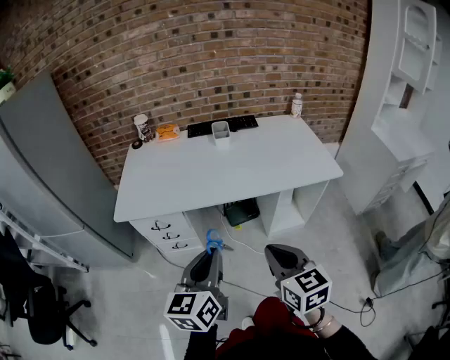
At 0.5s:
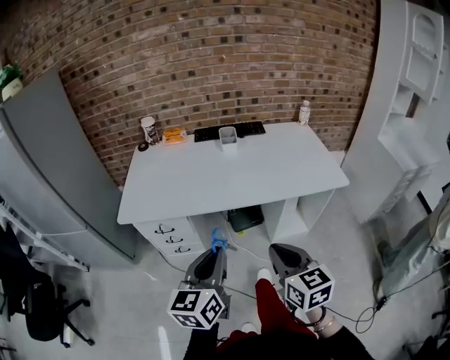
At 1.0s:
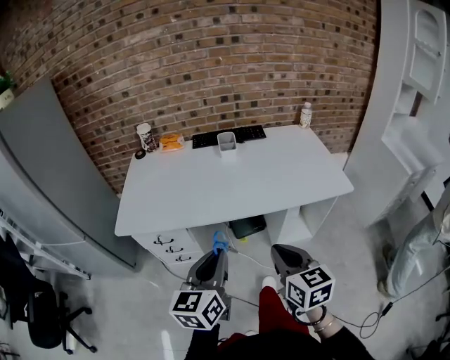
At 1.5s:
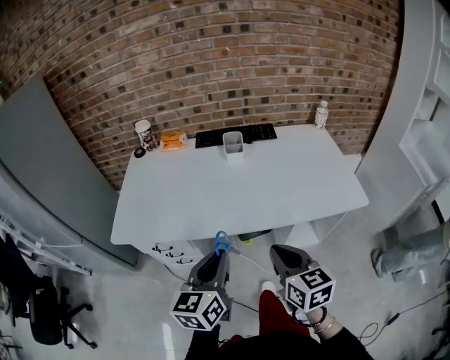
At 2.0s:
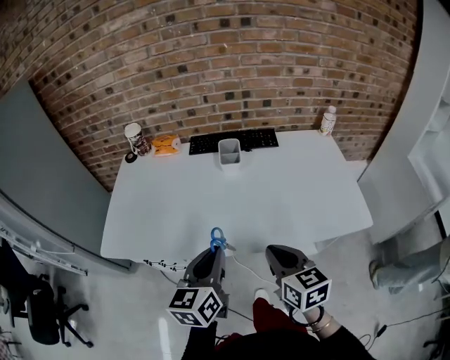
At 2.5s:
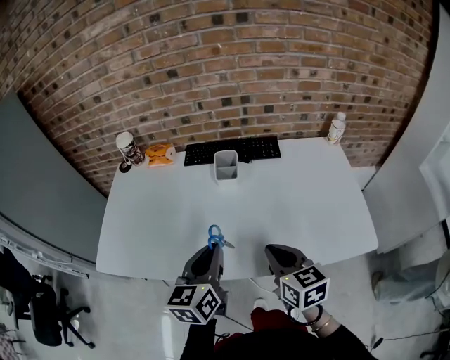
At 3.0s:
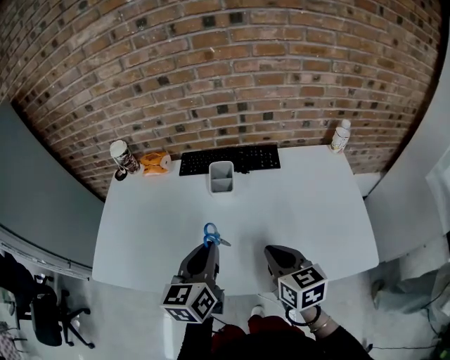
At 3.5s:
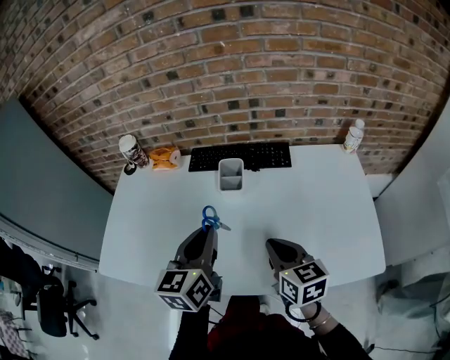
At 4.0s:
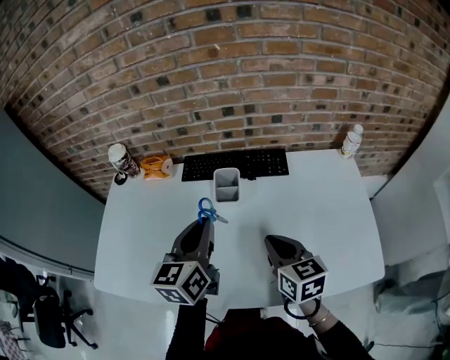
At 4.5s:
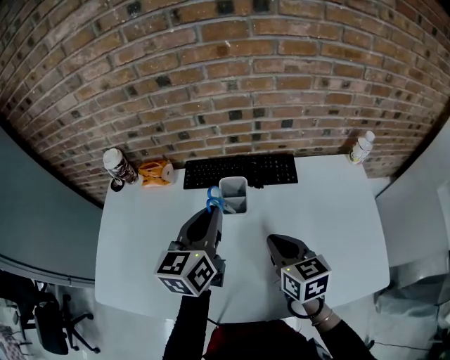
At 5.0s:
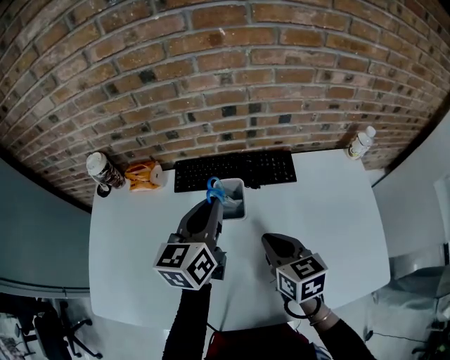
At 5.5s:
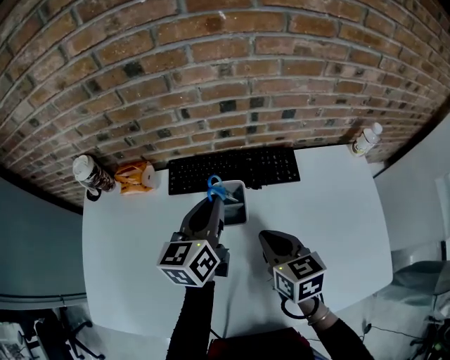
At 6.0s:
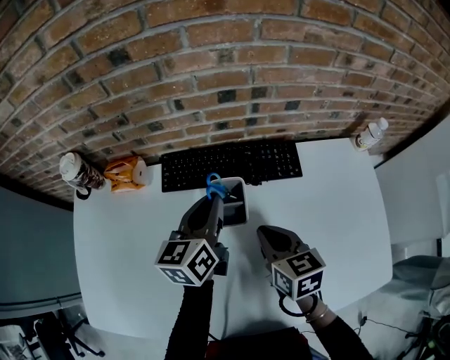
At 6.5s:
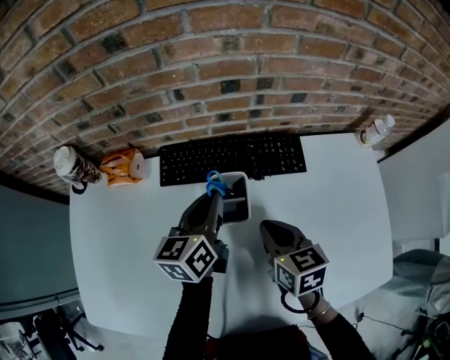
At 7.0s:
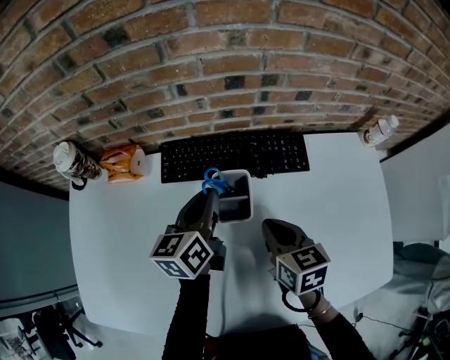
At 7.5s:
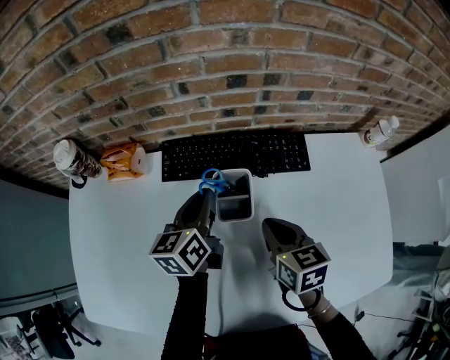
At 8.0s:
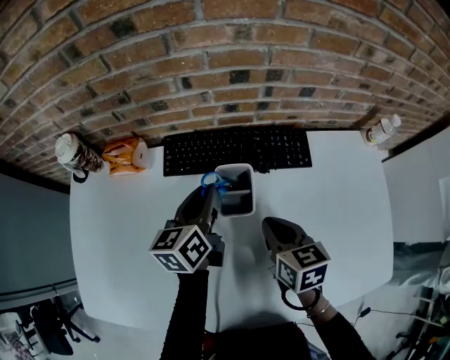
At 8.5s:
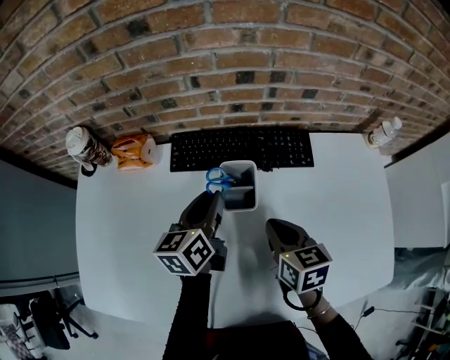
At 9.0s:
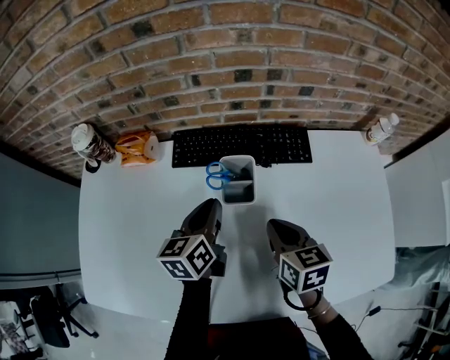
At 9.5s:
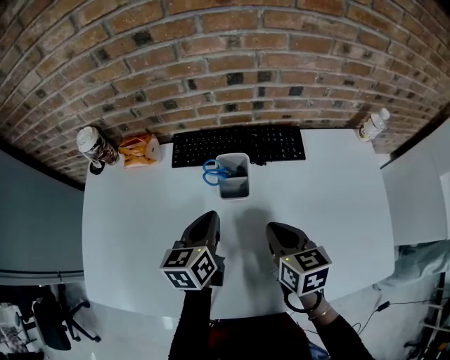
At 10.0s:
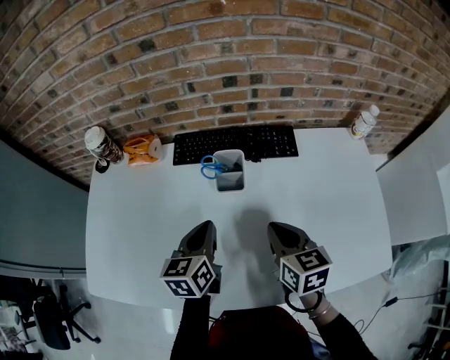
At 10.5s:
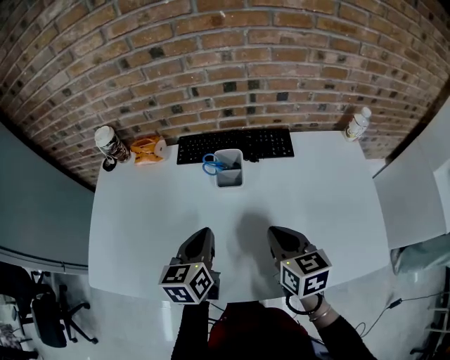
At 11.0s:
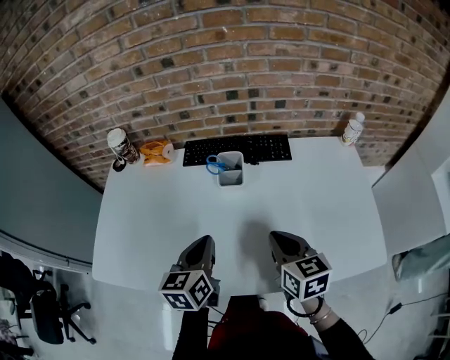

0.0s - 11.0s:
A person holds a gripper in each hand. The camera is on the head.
0.0s - 2.0s: Both grippers travel together forward, approximately 25 cm.
2.0s - 3.5s: Both grippers travel together forward, about 20 cm.
3.5s - 5.5s: Both grippers travel together forward, about 20 cm.
5.5s - 7.5s: The right gripper changes place by roughly 5 cm, while the left gripper travels downward by some 10 cm.
7.5s - 9.0s: The left gripper travels backward by roughly 5 cm.
9.0s - 11.0s: The left gripper goes roughly 20 cm backward; the right gripper moves backward and upward, about 15 cm.

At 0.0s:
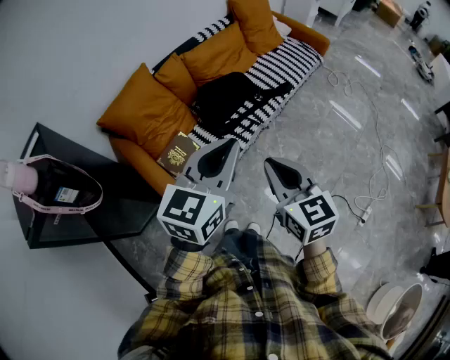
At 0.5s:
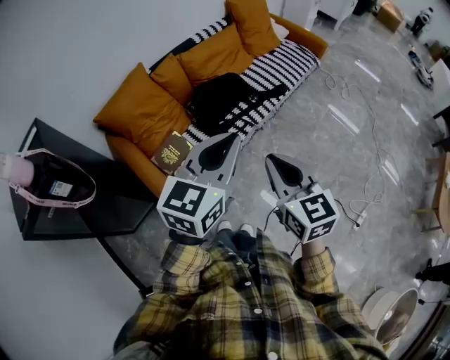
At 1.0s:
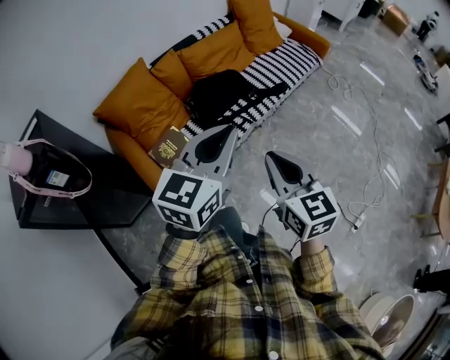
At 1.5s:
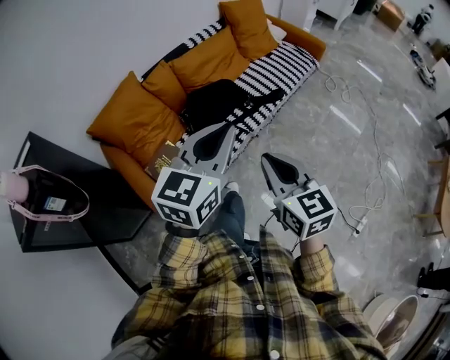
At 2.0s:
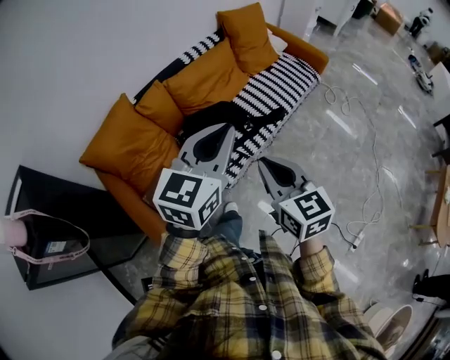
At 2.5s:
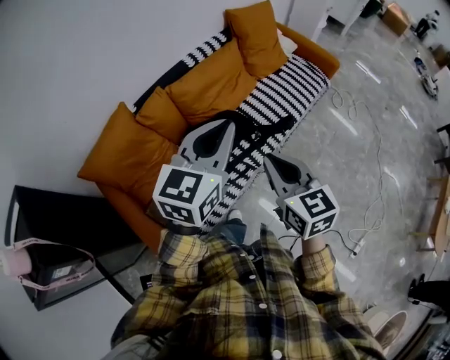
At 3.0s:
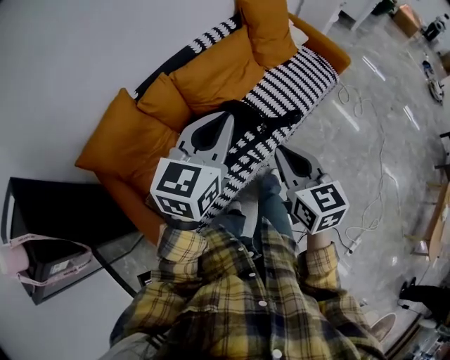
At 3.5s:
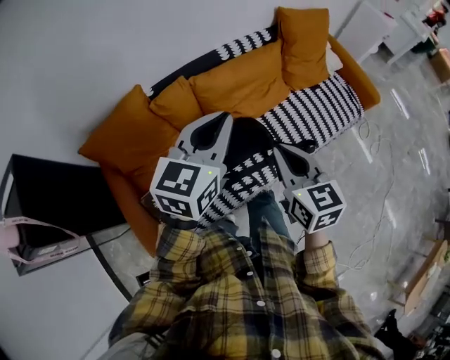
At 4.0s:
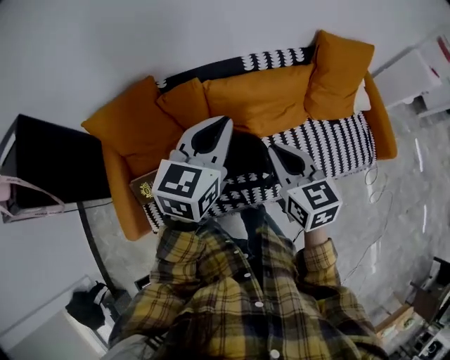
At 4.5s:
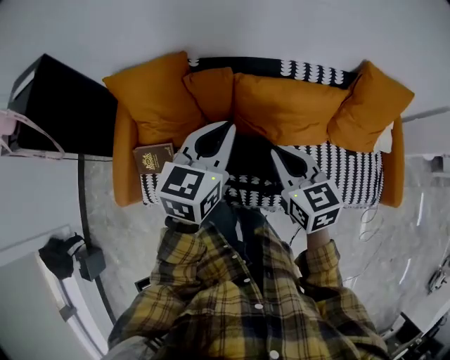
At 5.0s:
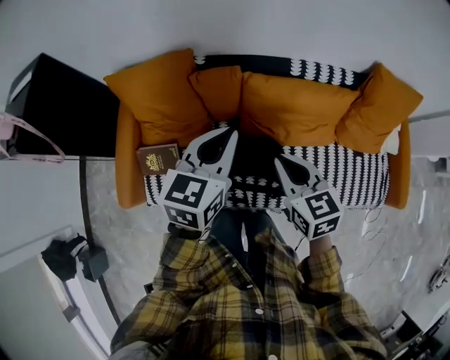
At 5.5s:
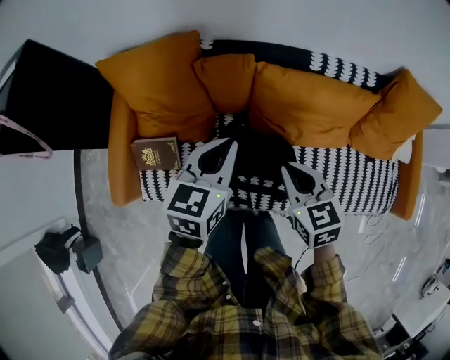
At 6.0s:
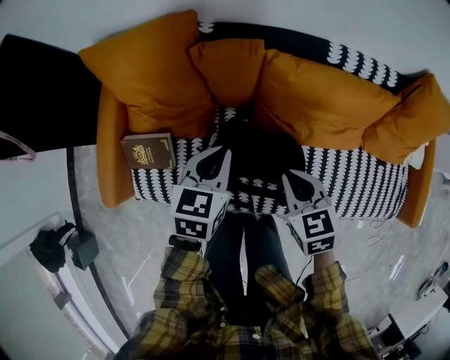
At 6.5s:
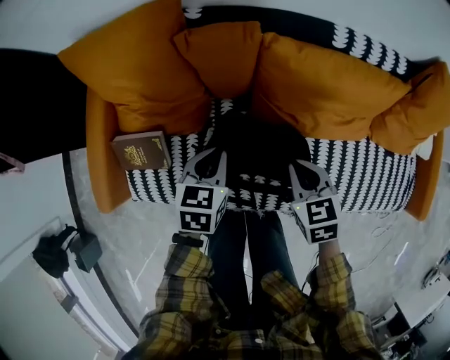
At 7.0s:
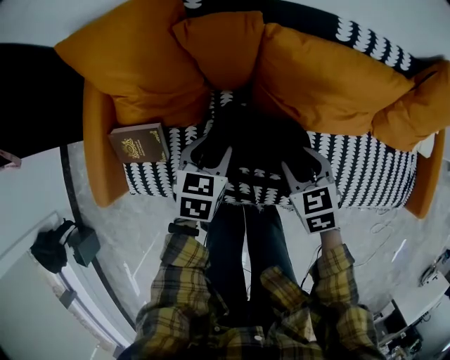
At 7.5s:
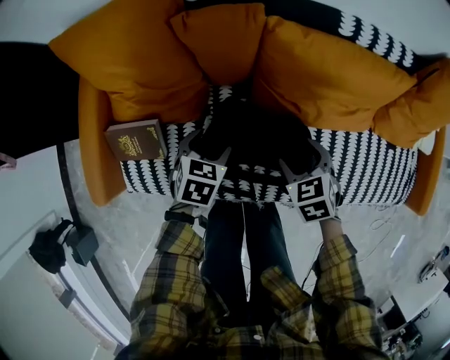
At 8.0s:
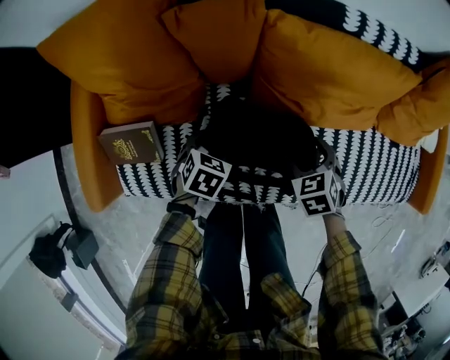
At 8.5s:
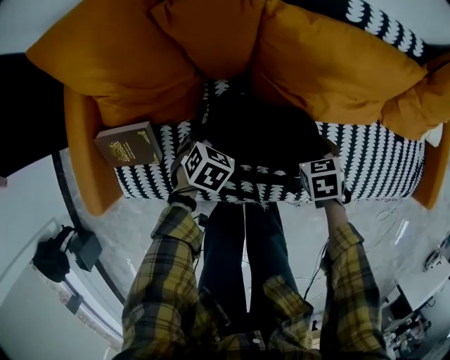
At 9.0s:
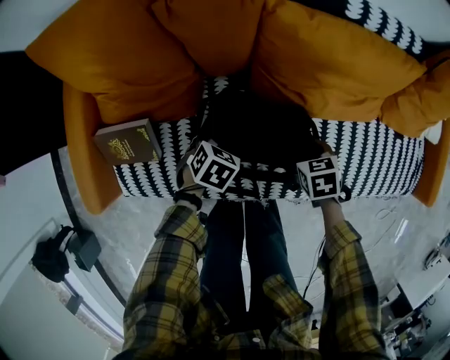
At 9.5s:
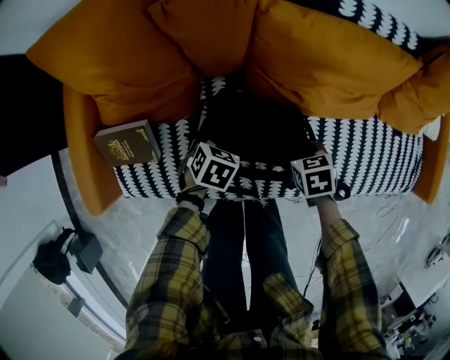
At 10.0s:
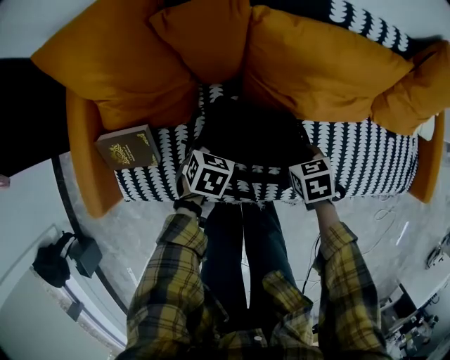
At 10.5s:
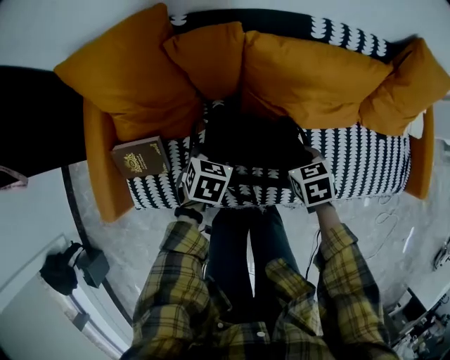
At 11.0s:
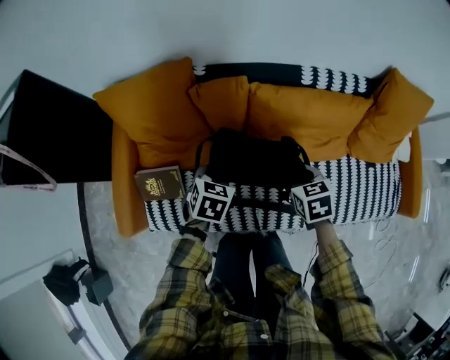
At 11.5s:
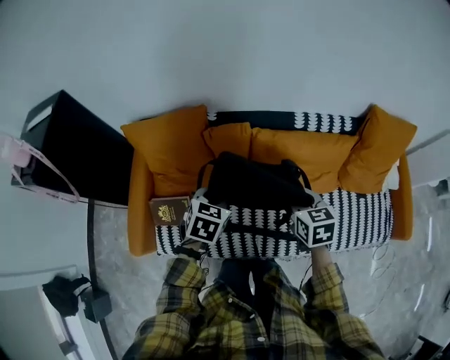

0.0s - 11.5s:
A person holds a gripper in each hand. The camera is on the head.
0.0s - 2.0s: Both grippers travel together forward, some 20 cm.
2.0s - 4.0s: The left gripper shifts by about 35 cm, and changes its angle by about 40 degrees, while the right gripper changes place by some 40 cm, and rotates about 30 degrees.
4.0s - 6.0s: The right gripper is displaced downward by roughly 25 cm, and turns by roughly 30 degrees; the left gripper travels downward and to the left by roughly 30 cm, and turns by about 30 degrees.
6.0s - 7.5s: The two grippers go about 15 cm downward. The right gripper opens. The left gripper changes its angle by approximately 20 degrees, and opens its fingers.
7.5s - 9.5s: The two grippers go approximately 10 cm downward. The right gripper changes its angle by about 20 degrees, and closes up. The left gripper closes up.
9.5s - 11.5s: The grippers both shift upward by roughly 35 cm. The right gripper turns by some 30 degrees. The left gripper turns by roughly 20 degrees.

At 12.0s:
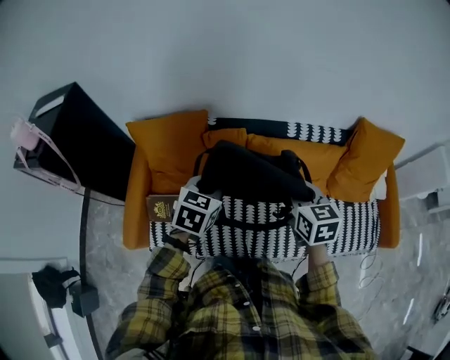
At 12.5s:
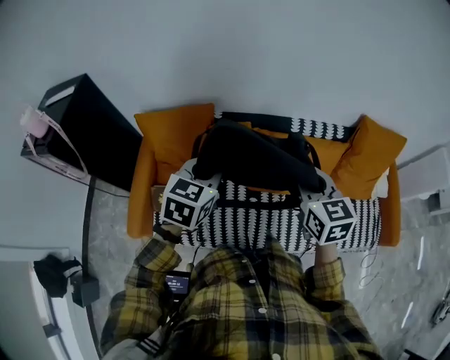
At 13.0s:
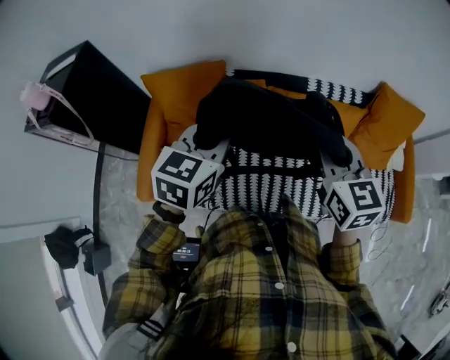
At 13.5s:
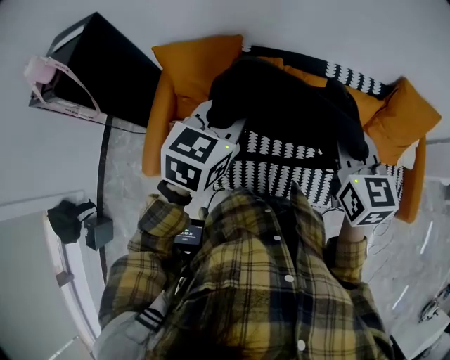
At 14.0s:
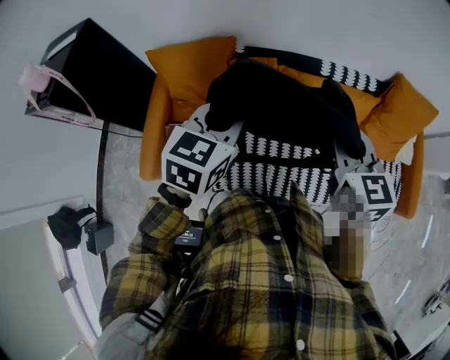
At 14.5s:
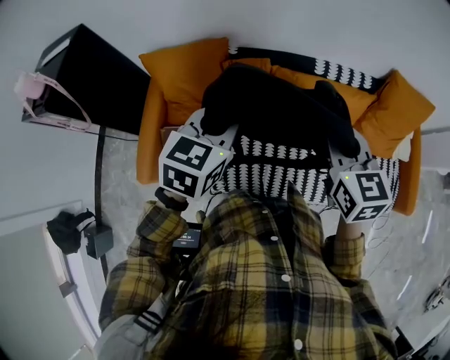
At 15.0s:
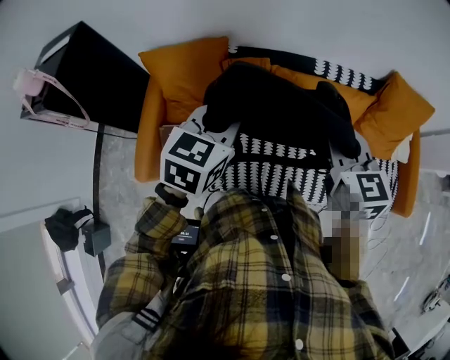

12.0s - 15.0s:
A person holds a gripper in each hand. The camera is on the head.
12.0s - 13.5s: The two grippers go about 10 cm upward.
13.5s - 15.0s: There are only small adjustments of the grippers.

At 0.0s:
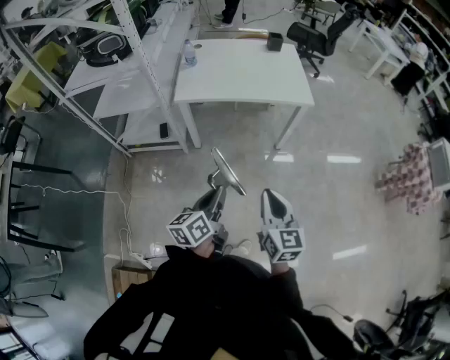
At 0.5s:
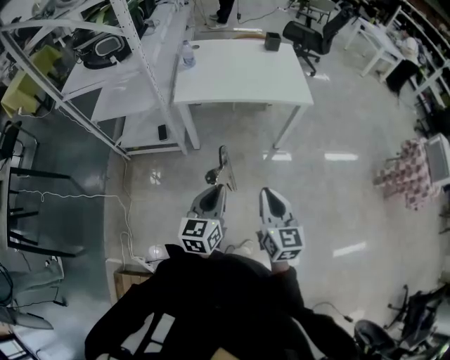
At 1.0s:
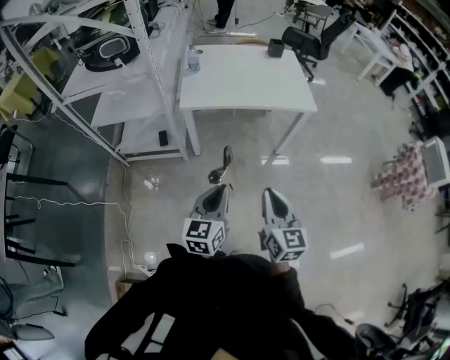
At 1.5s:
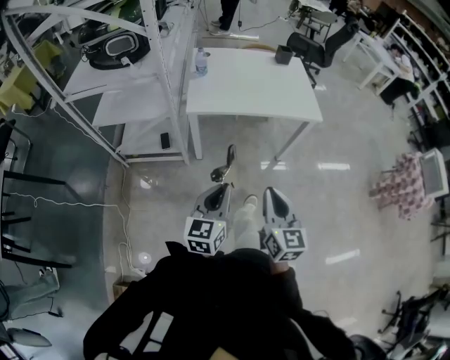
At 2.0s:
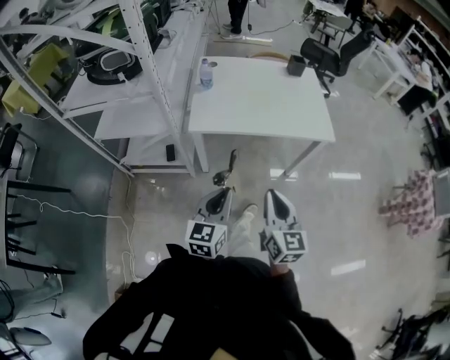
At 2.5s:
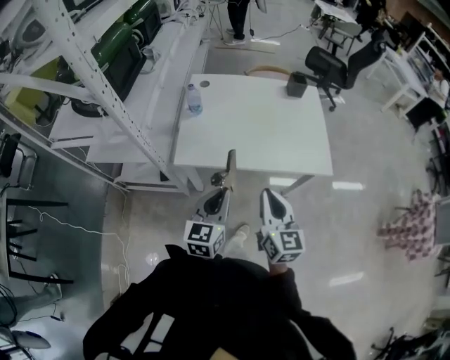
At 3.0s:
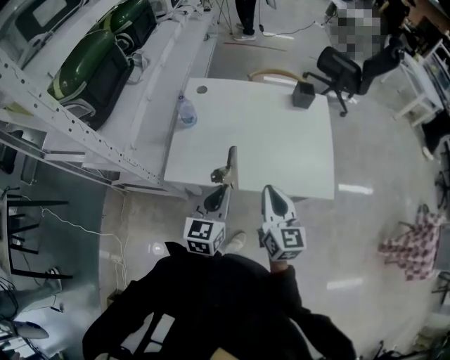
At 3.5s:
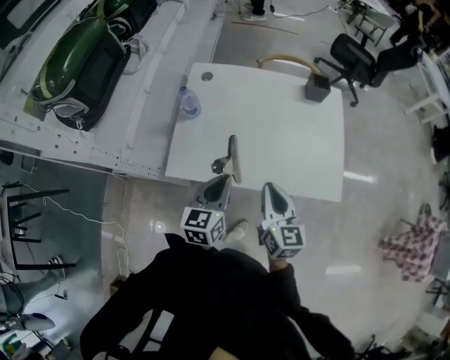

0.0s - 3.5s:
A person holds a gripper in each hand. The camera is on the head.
0.0s - 2.0s: Both grippers move forward and to the left, roughly 20 cm. The left gripper changes its angle by some 40 degrees.
2.0s - 3.5s: Both grippers travel together forward, about 35 cm.
